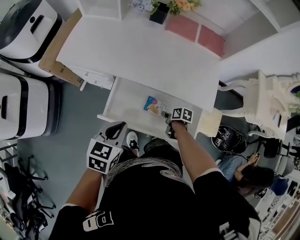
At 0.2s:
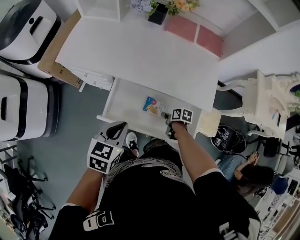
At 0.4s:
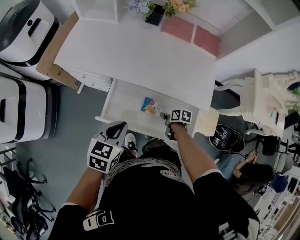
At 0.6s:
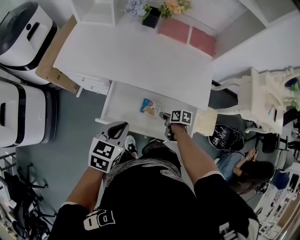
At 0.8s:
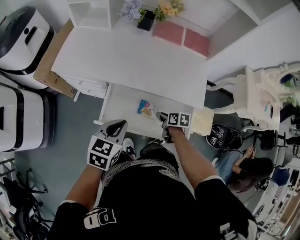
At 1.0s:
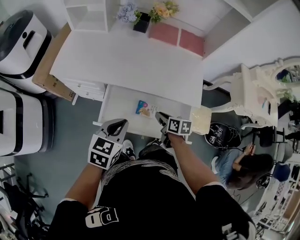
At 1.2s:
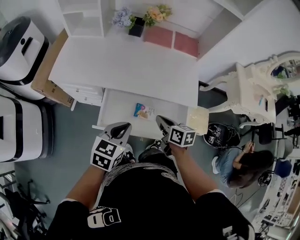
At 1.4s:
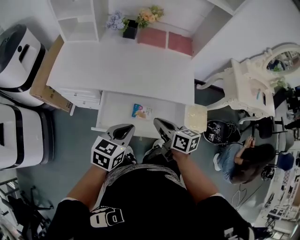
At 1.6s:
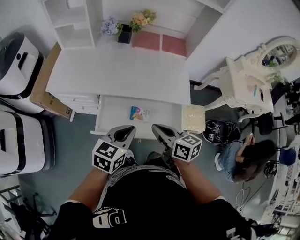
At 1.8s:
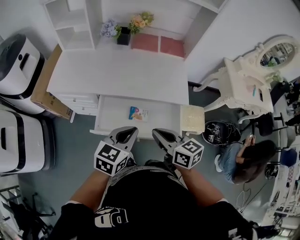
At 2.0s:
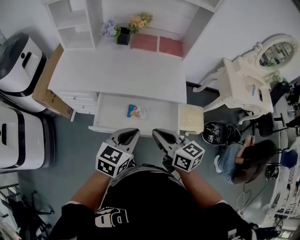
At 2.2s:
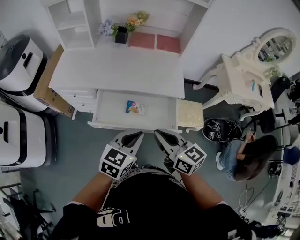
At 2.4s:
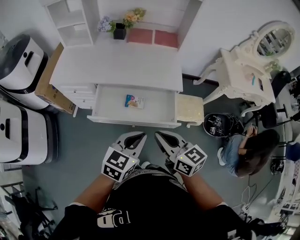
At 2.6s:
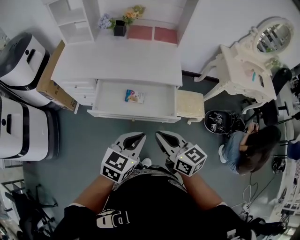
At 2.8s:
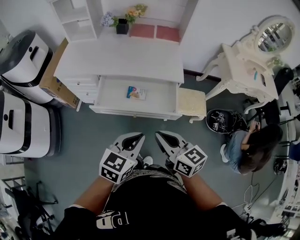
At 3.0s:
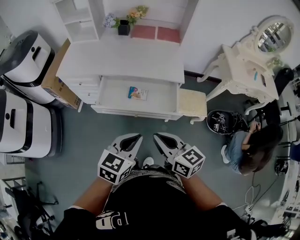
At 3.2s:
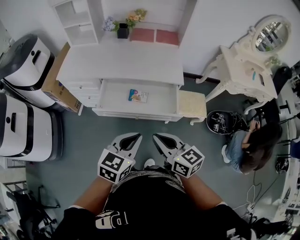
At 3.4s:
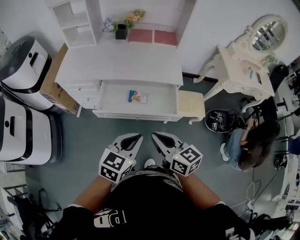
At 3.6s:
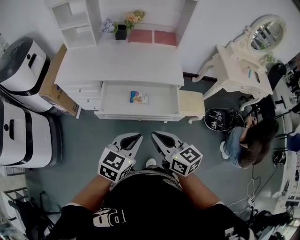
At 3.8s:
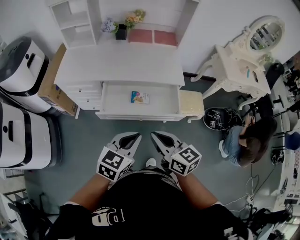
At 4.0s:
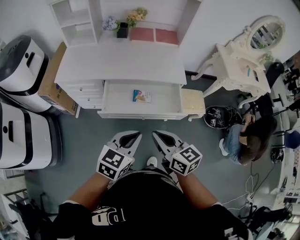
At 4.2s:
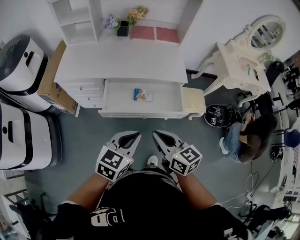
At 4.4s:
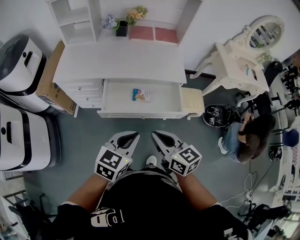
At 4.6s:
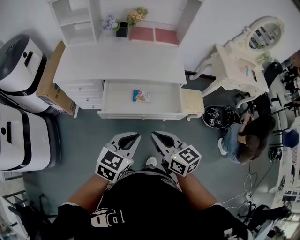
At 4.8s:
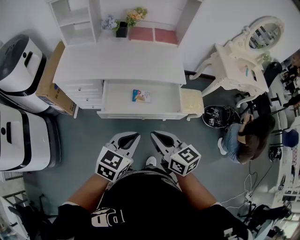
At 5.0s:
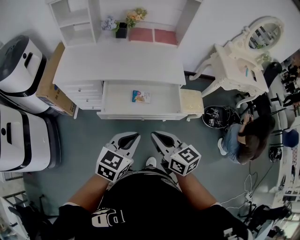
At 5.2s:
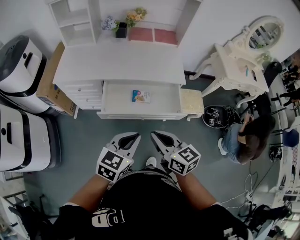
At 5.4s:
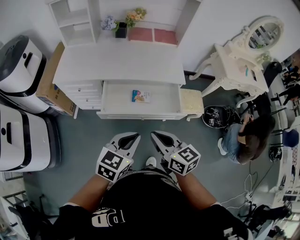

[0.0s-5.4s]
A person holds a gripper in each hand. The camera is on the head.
0.0s to 1.4s: The right gripper goes approximately 30 cm upward, points its fingers some 30 degrees further upward, and closes, while the left gripper is displaced to the right by approximately 5 cm.
1.4s to 2.8s: The left gripper goes roughly 25 cm backward and to the right. The right gripper moves backward, roughly 25 cm.
2.8s to 4.0s: The grippers both shift to the left by roughly 10 cm.
4.0s to 5.4s: The grippers make only small movements.

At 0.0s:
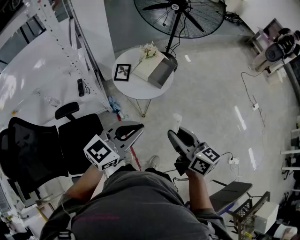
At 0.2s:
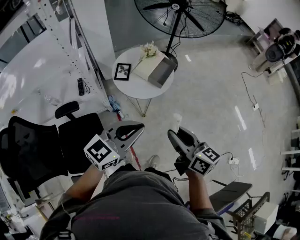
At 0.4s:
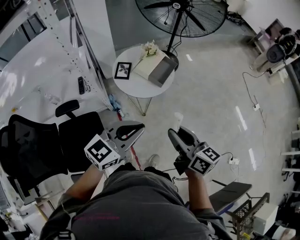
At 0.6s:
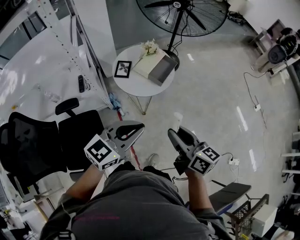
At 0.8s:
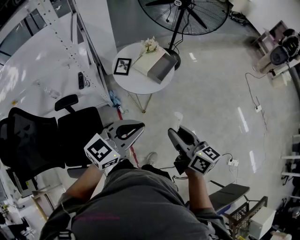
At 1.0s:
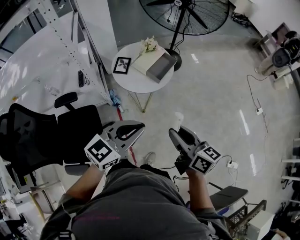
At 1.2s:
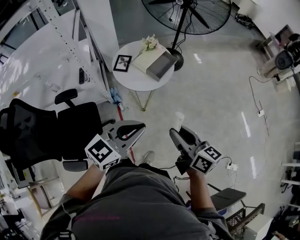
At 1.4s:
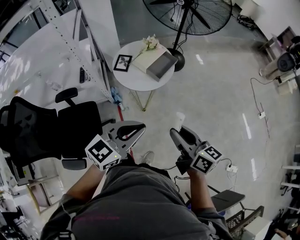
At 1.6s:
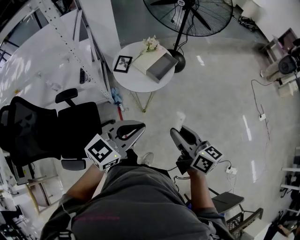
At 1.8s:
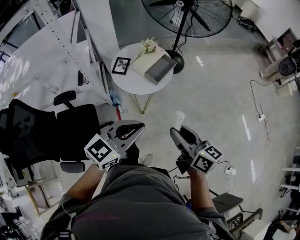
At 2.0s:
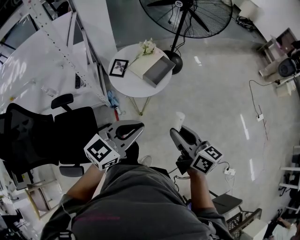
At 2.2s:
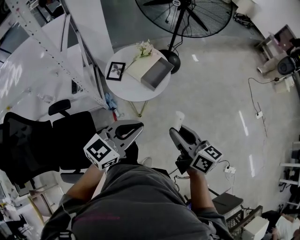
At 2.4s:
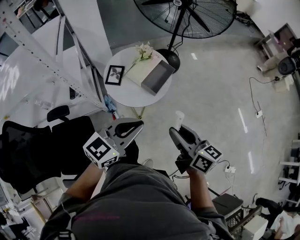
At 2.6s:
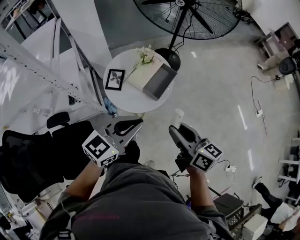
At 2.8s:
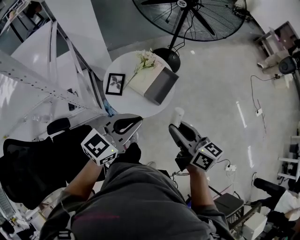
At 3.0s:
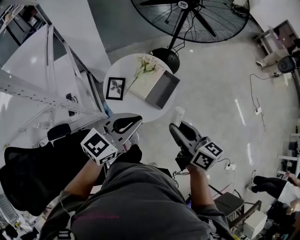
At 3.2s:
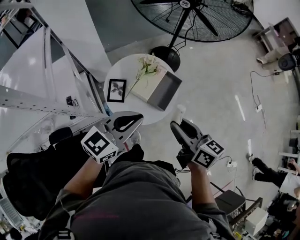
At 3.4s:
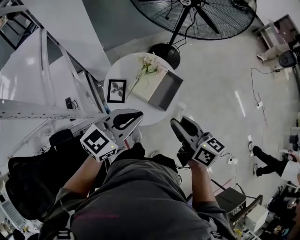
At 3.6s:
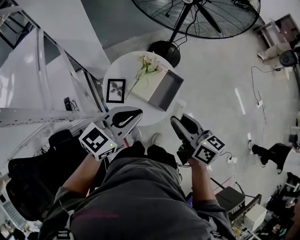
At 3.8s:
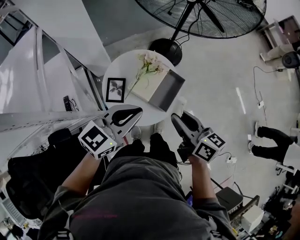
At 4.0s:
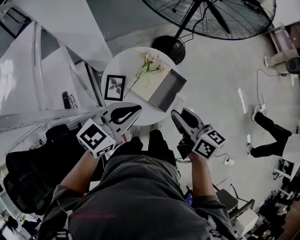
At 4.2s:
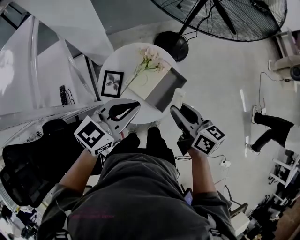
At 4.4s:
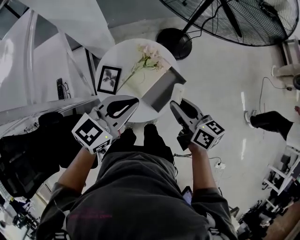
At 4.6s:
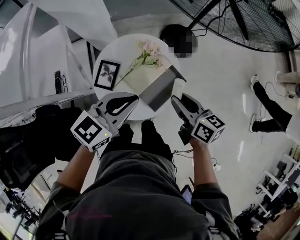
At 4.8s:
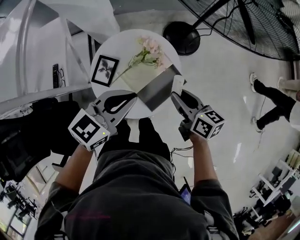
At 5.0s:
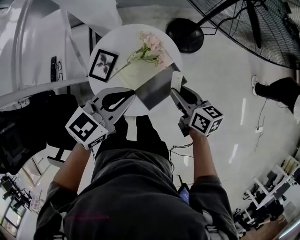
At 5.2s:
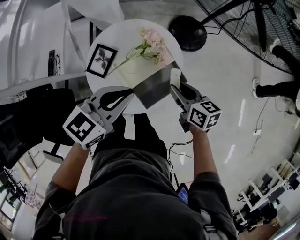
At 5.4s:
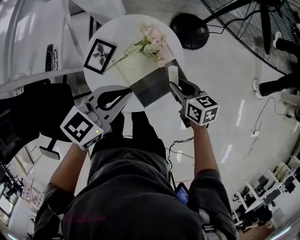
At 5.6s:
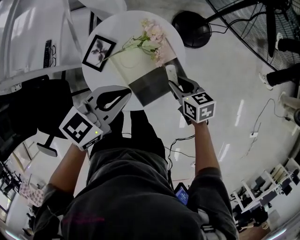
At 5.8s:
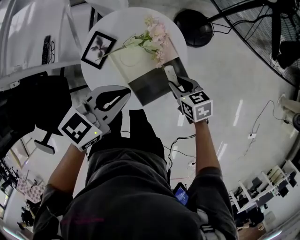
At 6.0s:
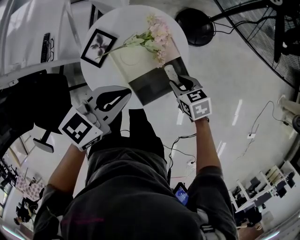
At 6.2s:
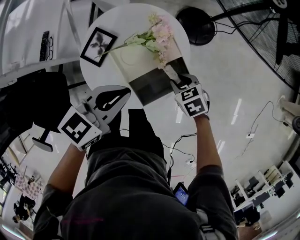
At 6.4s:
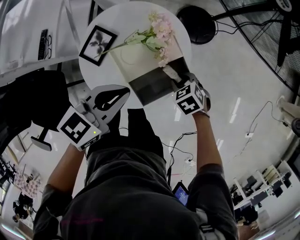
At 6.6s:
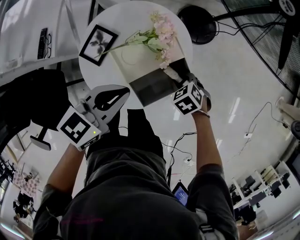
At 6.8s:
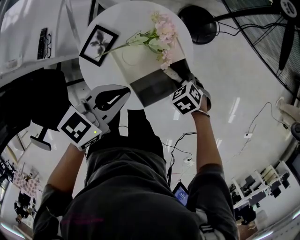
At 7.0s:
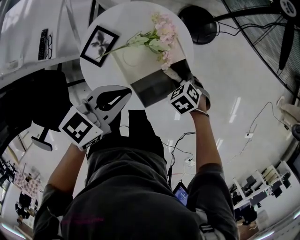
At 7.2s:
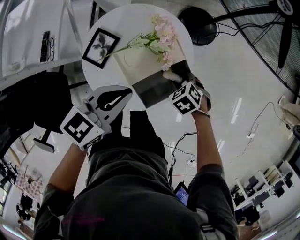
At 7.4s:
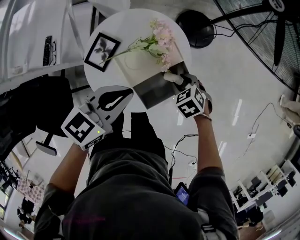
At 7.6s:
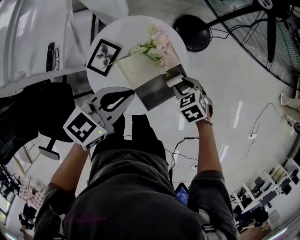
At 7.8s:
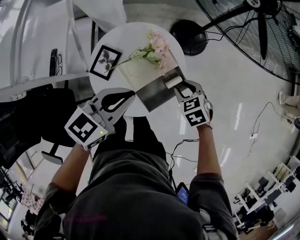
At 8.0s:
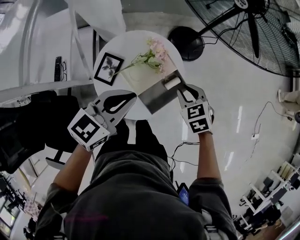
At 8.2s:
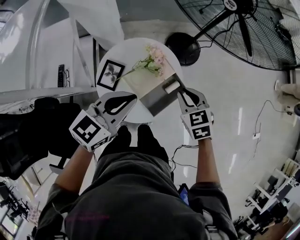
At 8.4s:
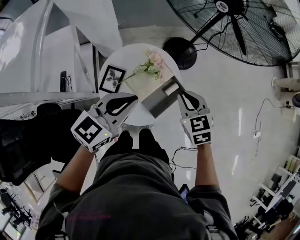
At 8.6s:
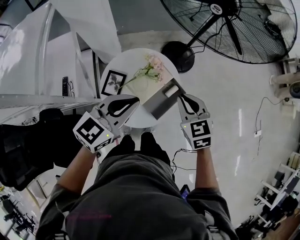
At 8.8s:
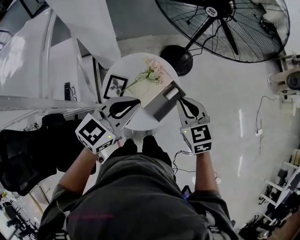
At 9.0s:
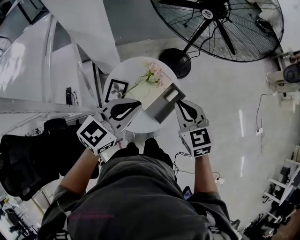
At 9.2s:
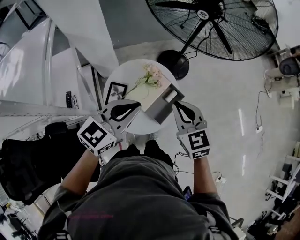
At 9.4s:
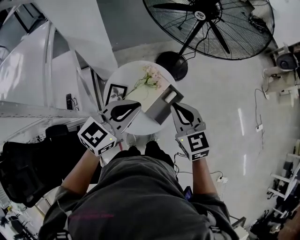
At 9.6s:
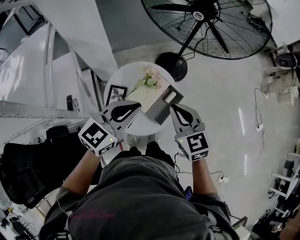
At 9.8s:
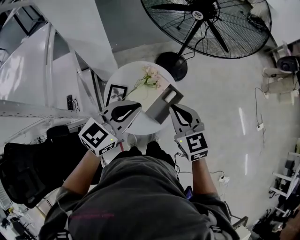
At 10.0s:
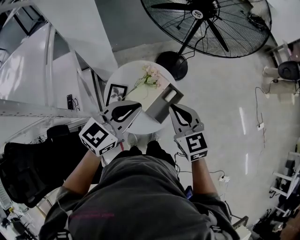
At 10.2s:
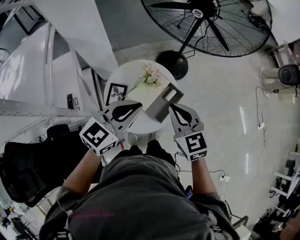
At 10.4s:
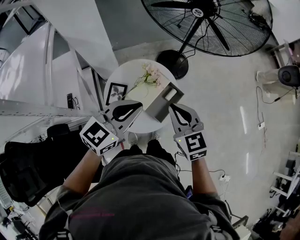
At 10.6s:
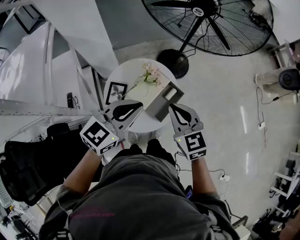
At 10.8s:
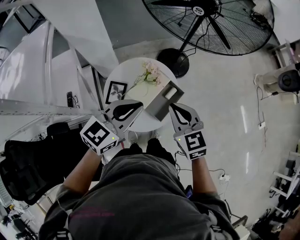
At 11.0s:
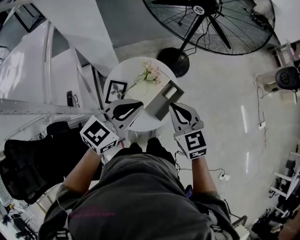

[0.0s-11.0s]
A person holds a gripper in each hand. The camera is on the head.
0.0s to 1.6s: Both grippers travel together to the right, some 10 cm.
1.6s to 3.2s: The grippers both shift forward and to the left by about 35 cm.
3.2s to 4.8s: Both grippers move forward and downward, some 20 cm. The right gripper swivels roughly 20 degrees. The left gripper swivels approximately 20 degrees.
4.8s to 6.2s: The right gripper is displaced downward by about 20 cm, and angles its fingers downward, by roughly 40 degrees; the left gripper moves downward, approximately 10 cm.
6.2s to 7.8s: Both grippers travel together upward, some 5 cm.
7.8s to 9.4s: The right gripper shifts roughly 25 cm upward, tips its fingers upward by some 40 degrees, and closes, while the left gripper heads upward, covering some 15 cm, and turns by about 20 degrees.
9.4s to 11.0s: The grippers move only a little.

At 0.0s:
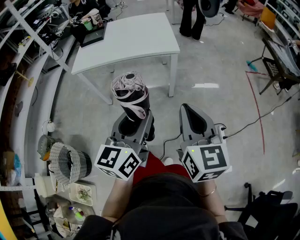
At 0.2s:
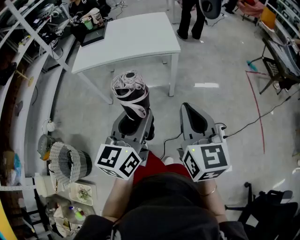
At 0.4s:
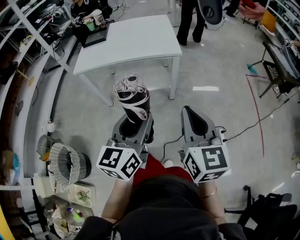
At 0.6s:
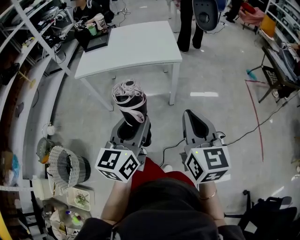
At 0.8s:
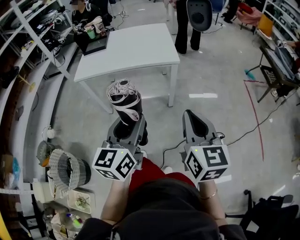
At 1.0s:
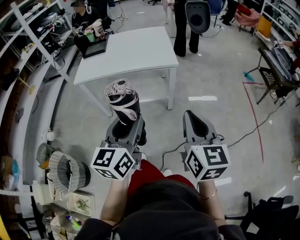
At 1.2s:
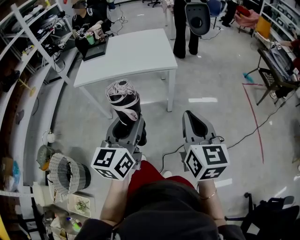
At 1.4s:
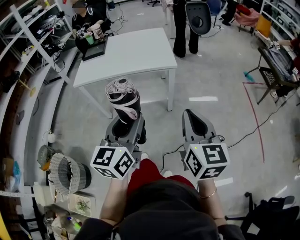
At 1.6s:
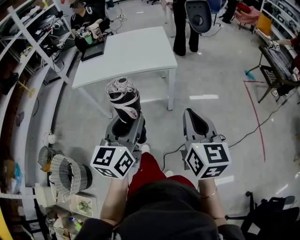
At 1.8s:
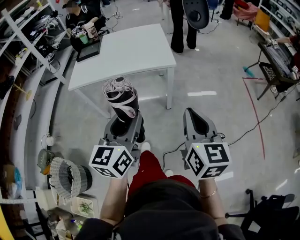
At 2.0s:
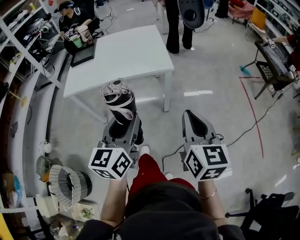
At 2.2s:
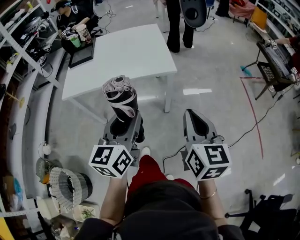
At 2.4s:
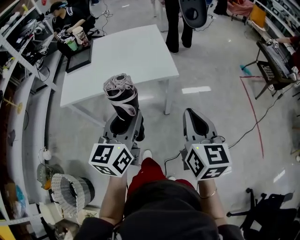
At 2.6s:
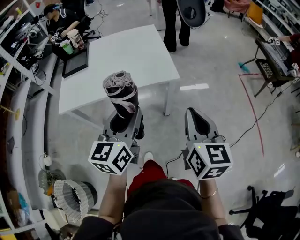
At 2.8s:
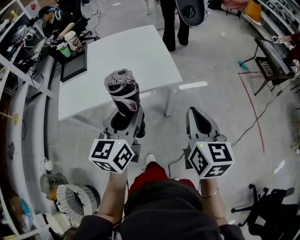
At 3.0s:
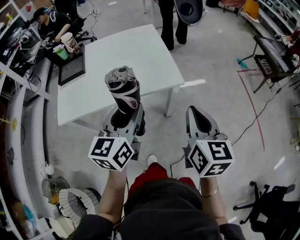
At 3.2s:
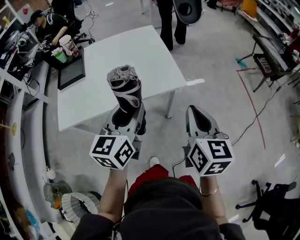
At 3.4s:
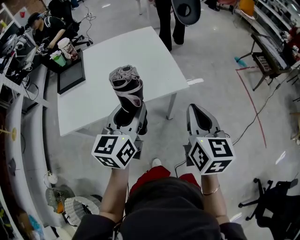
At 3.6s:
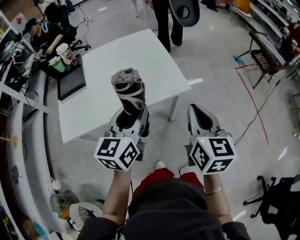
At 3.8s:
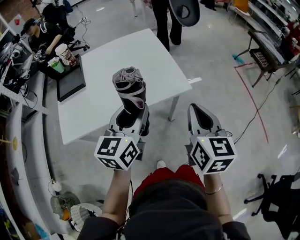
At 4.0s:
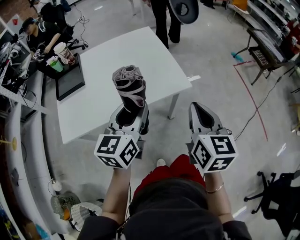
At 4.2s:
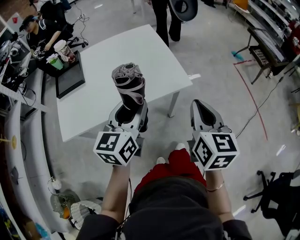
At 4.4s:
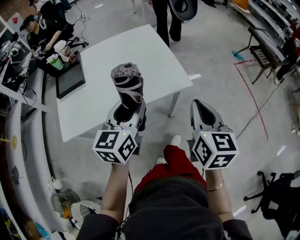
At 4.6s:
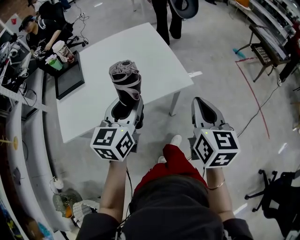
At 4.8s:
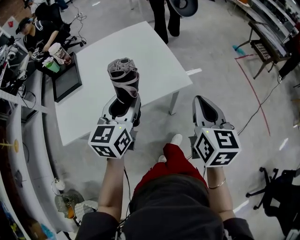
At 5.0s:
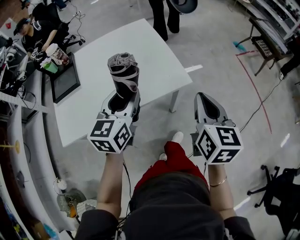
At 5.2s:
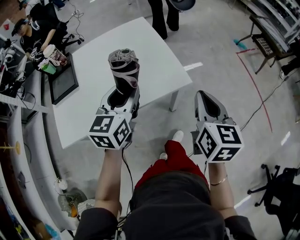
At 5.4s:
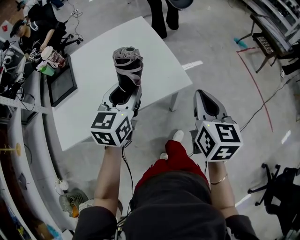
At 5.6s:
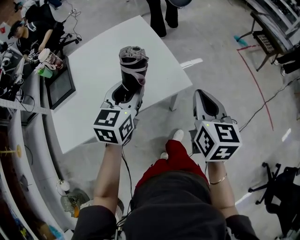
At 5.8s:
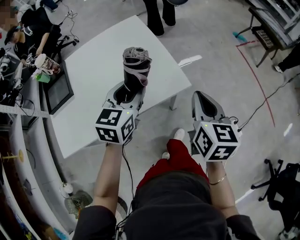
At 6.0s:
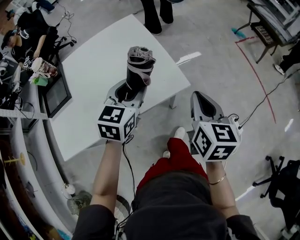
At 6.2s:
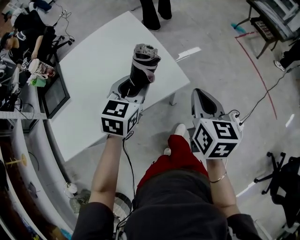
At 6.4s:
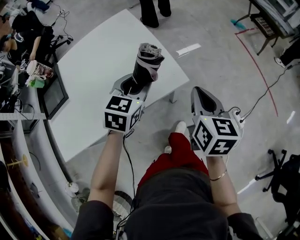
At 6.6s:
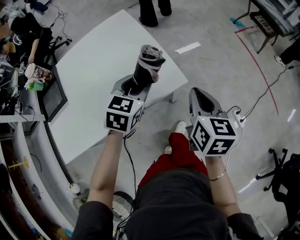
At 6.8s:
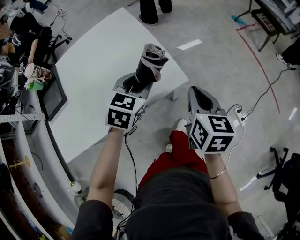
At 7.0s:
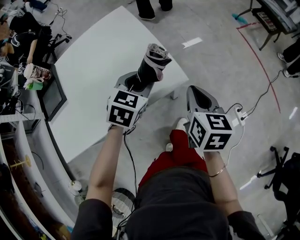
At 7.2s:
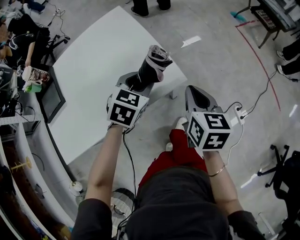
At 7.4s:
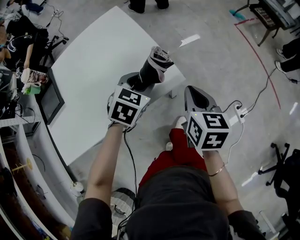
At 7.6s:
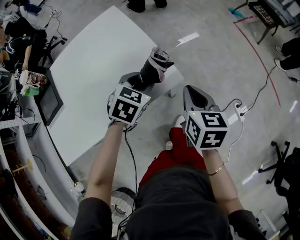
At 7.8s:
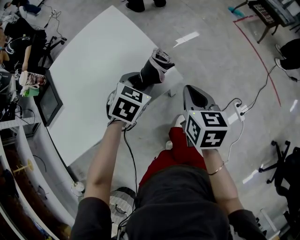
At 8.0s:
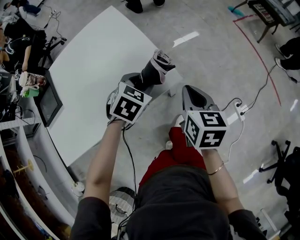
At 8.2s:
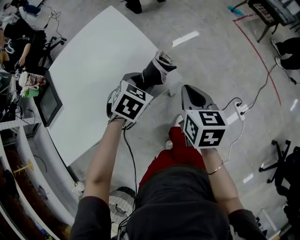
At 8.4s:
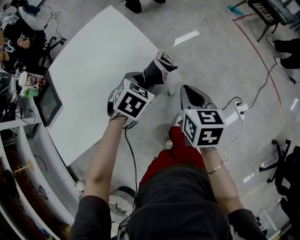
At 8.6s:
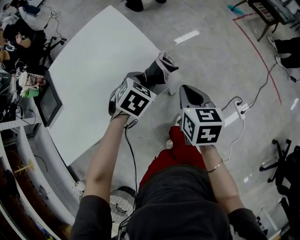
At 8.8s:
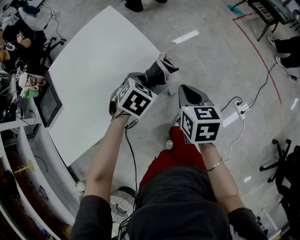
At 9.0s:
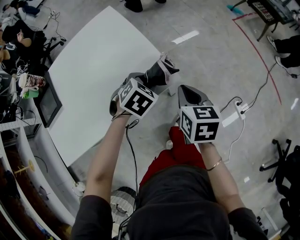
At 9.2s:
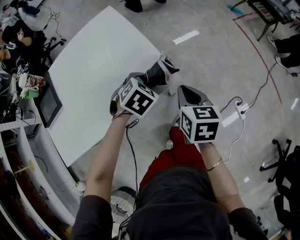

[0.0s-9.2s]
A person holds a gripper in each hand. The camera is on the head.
0.0s to 1.6s: There are only small adjustments of the grippers.
1.6s to 3.0s: The grippers both shift forward by about 25 cm.
3.0s to 4.6s: The right gripper shifts roughly 5 cm forward. Meanwhile the left gripper travels forward and to the left by roughly 10 cm.
4.6s to 6.2s: The left gripper moves forward, downward and to the right, some 20 cm, and turns by roughly 30 degrees; the right gripper shifts about 15 cm forward and downward.
6.2s to 7.6s: The grippers both shift downward by approximately 10 cm. The left gripper rotates approximately 20 degrees.
7.6s to 9.2s: There are only small adjustments of the grippers.
